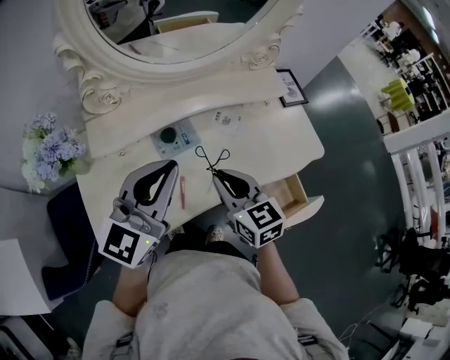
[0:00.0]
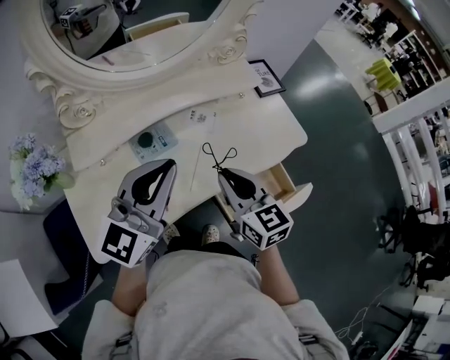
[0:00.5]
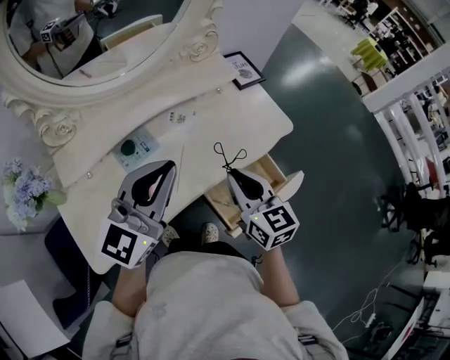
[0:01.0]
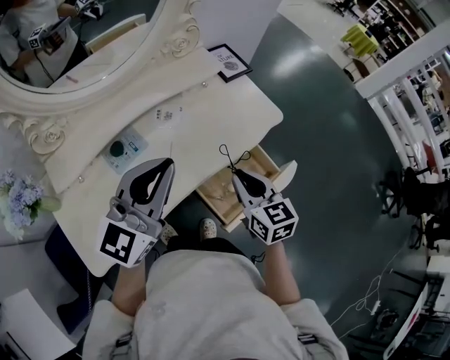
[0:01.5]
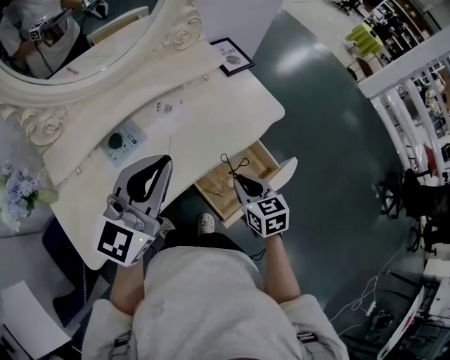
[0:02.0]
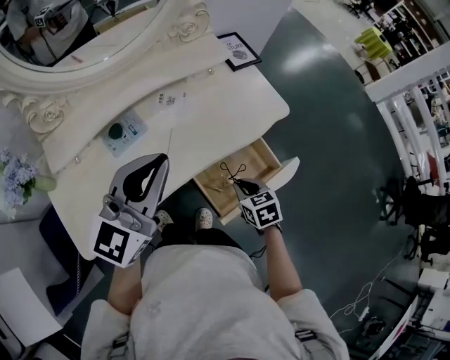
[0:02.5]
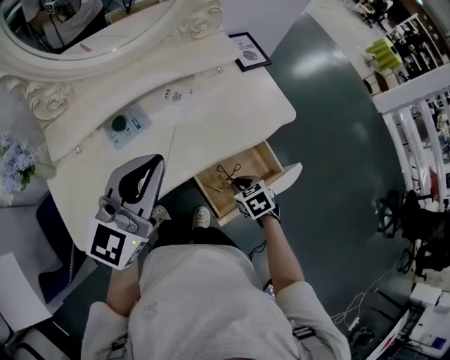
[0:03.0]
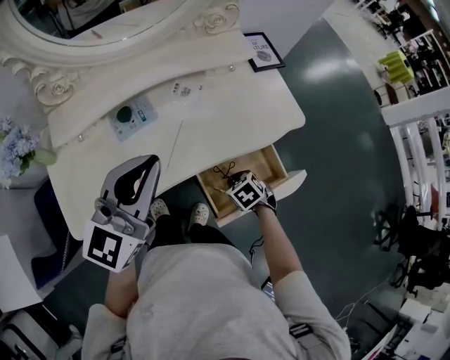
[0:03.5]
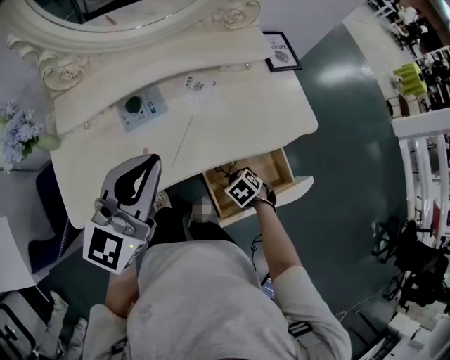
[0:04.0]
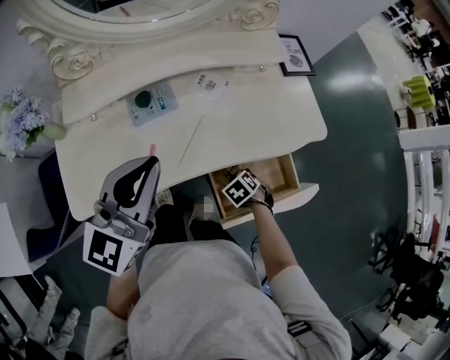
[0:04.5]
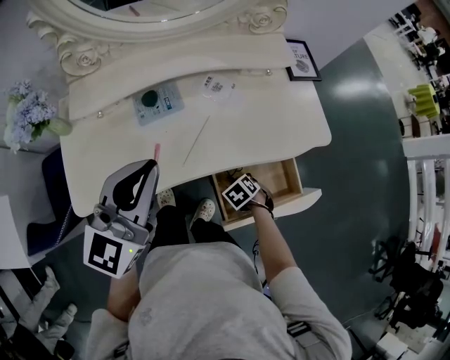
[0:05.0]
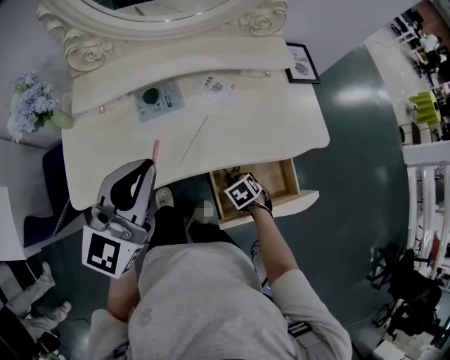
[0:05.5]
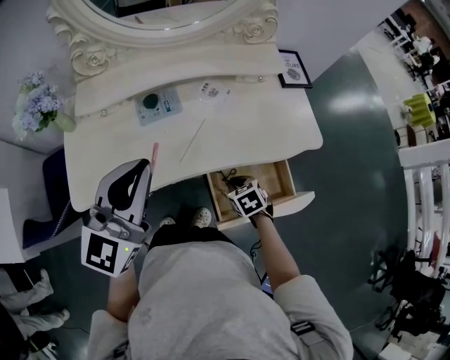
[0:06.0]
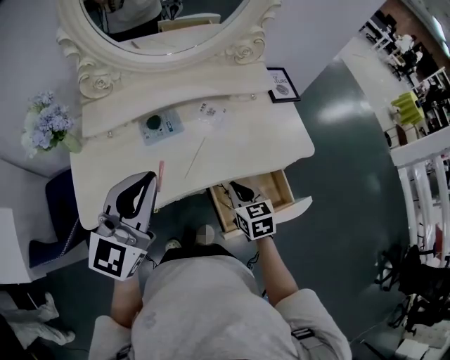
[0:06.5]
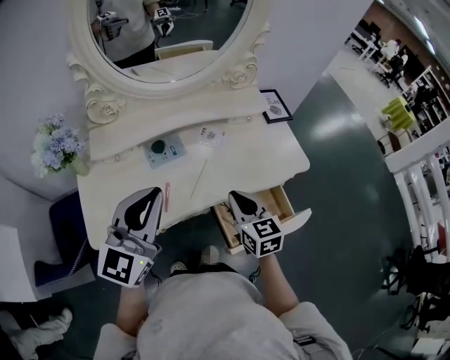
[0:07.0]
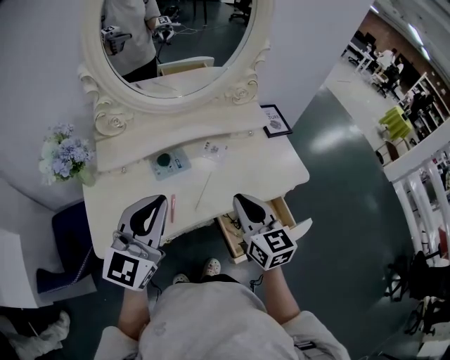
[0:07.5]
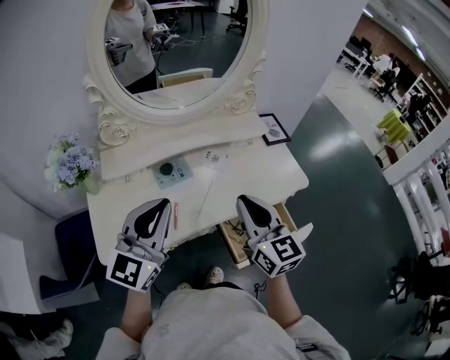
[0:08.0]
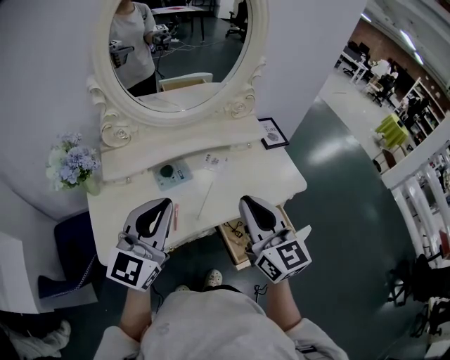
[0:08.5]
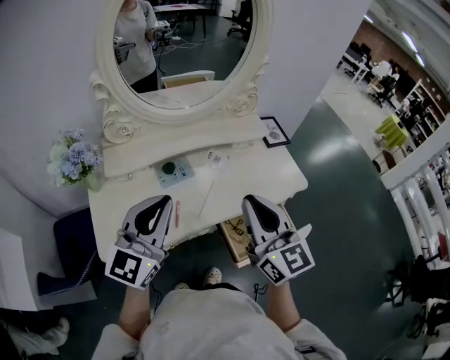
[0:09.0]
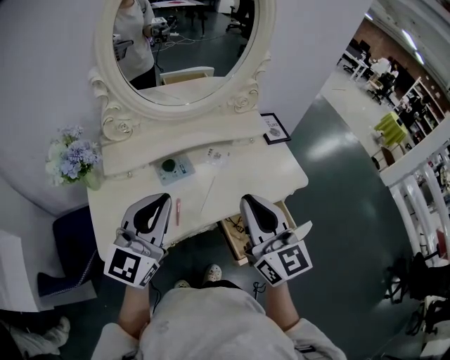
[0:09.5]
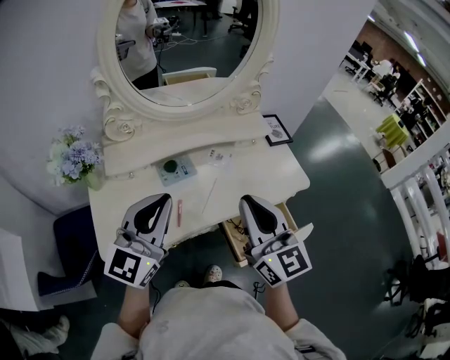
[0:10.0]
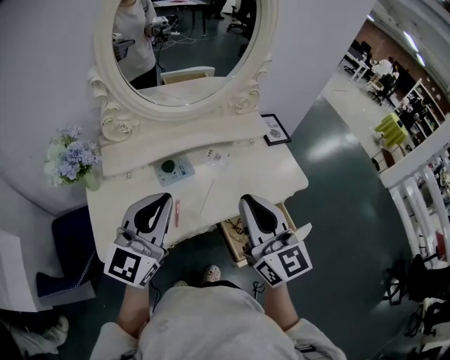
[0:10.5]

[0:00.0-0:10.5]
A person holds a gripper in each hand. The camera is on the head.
0:00.0 to 0:02.0: The left gripper travels to the right by approximately 15 cm. Meanwhile the right gripper shifts roughly 25 cm to the right and downward, and swivels roughly 30 degrees.
0:02.0 to 0:04.0: The left gripper changes place by roughly 5 cm. The right gripper shifts some 20 cm downward, and tips its fingers downward by approximately 40 degrees.
0:04.0 to 0:06.5: The left gripper shifts by approximately 10 cm. The right gripper is displaced upward by about 15 cm, and tips its fingers upward by approximately 40 degrees.
0:06.5 to 0:08.5: The right gripper goes about 25 cm upward, and tips its fingers upward by roughly 40 degrees.
0:08.5 to 0:10.5: The grippers make only small movements.

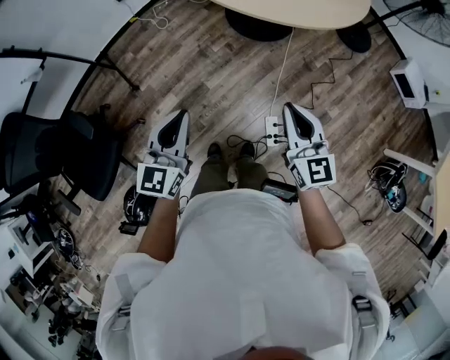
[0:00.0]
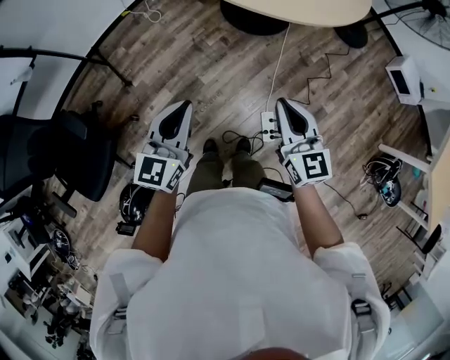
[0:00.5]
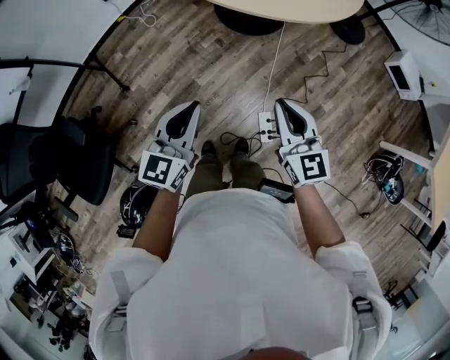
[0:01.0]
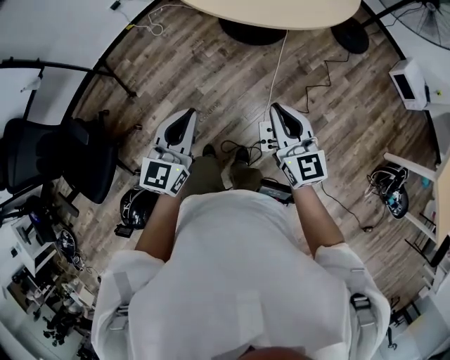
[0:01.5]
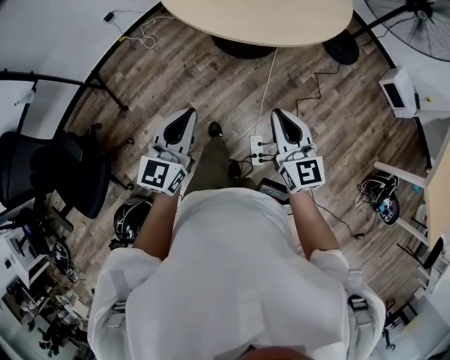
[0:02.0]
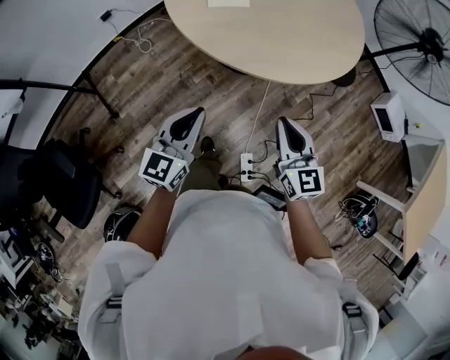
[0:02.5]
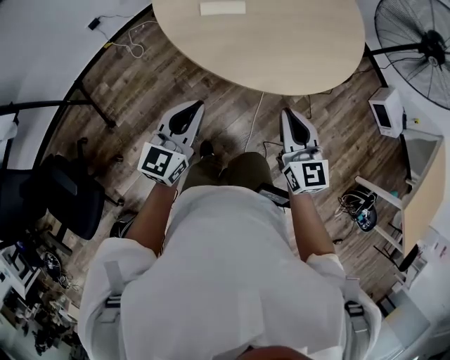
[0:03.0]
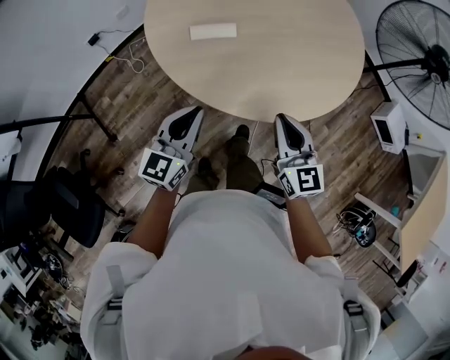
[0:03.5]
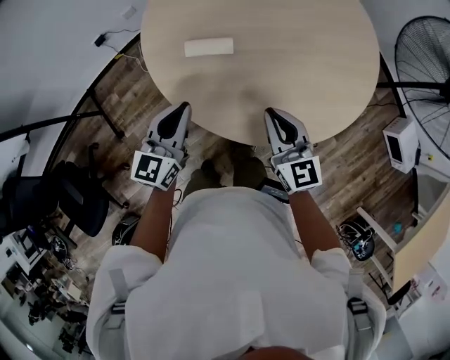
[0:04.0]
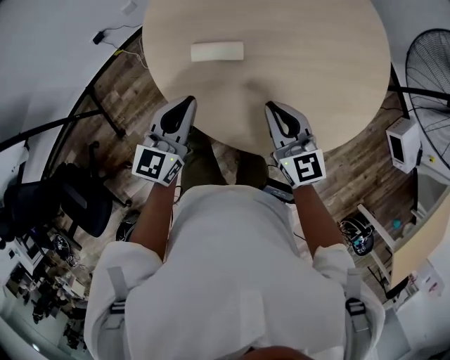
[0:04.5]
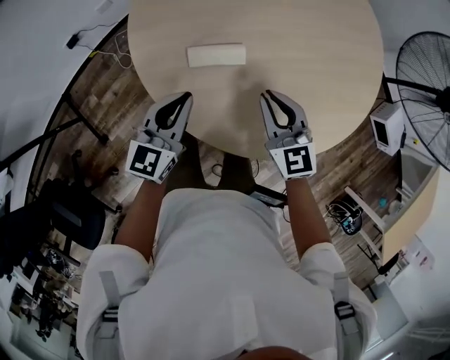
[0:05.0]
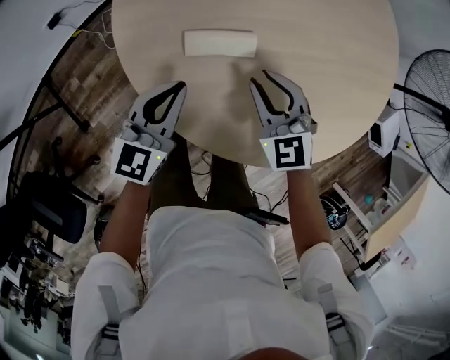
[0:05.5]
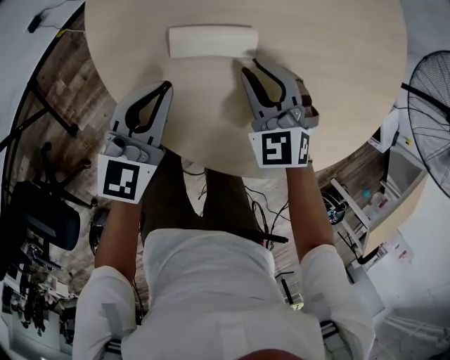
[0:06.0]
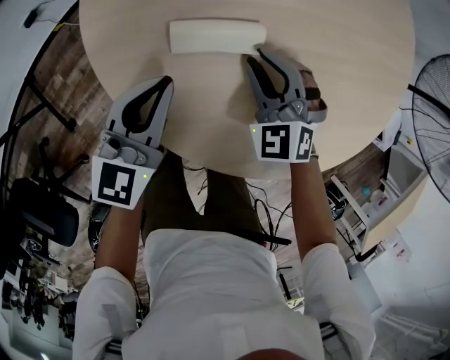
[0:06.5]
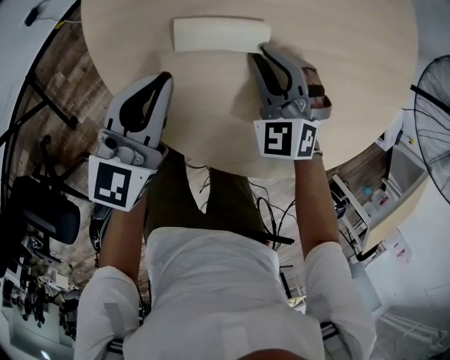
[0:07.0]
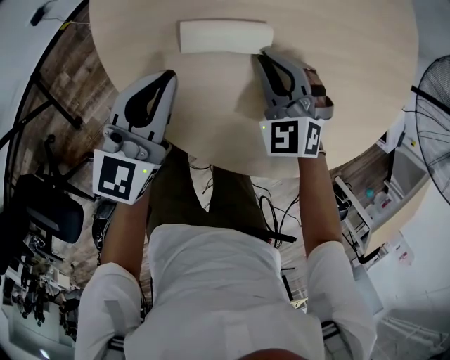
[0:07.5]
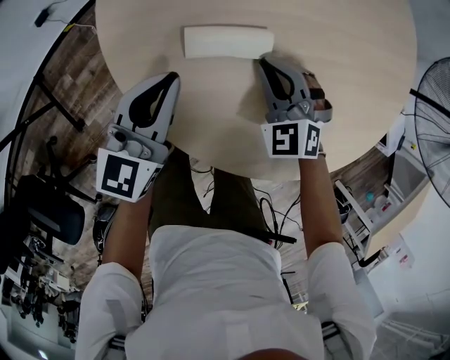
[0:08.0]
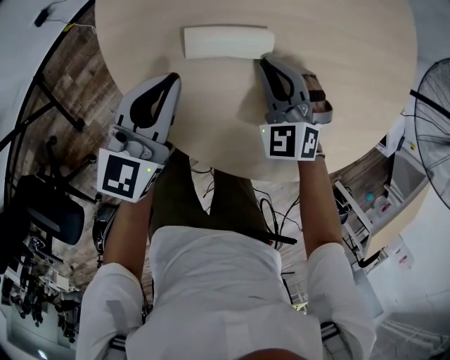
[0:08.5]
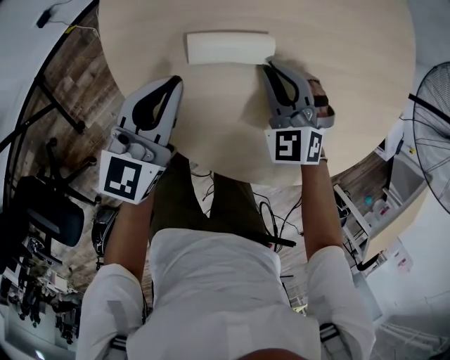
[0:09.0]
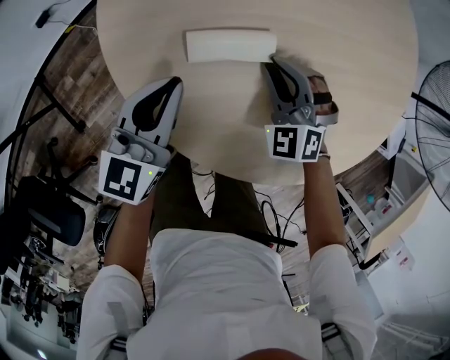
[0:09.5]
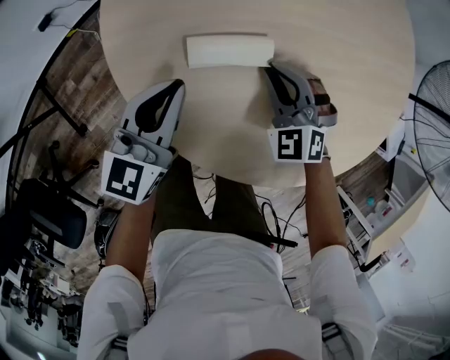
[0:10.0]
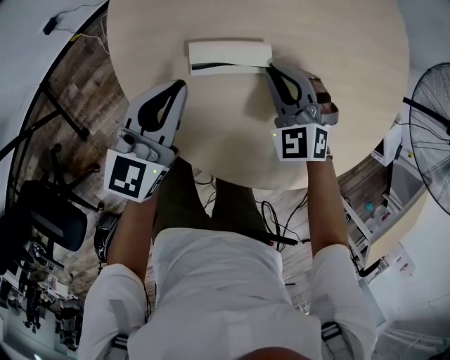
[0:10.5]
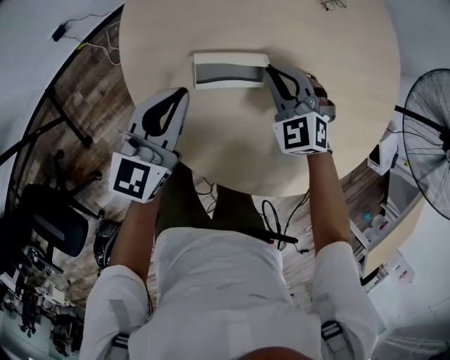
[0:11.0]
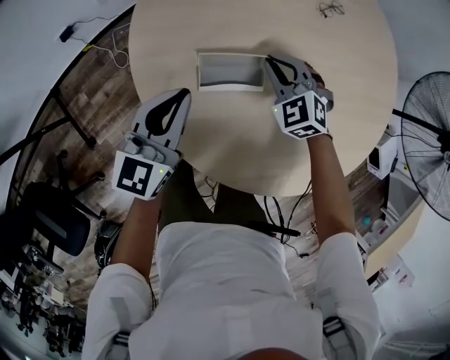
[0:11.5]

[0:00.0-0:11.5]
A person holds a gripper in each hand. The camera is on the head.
0:00.0 to 0:02.0: The grippers both shift to the right and forward by approximately 10 cm.
0:02.0 to 0:04.0: Both grippers are carried forward, approximately 40 cm.
0:04.0 to 0:06.0: The right gripper shifts approximately 30 cm downward, forward and to the left, and turns by about 40 degrees, while the left gripper is displaced downward and forward by about 20 cm.
0:06.0 to 0:09.5: The grippers stay close to where they were, moving slightly.
0:09.5 to 0:11.5: The right gripper goes about 10 cm forward. Meanwhile the left gripper goes roughly 5 cm upward.

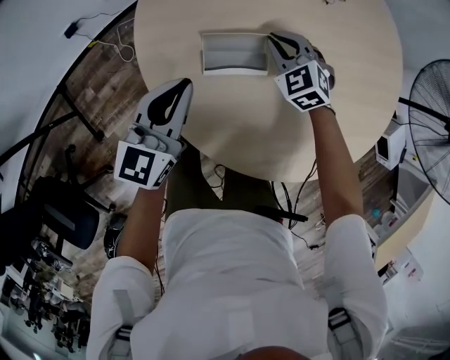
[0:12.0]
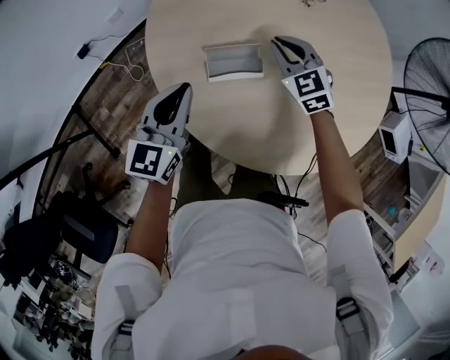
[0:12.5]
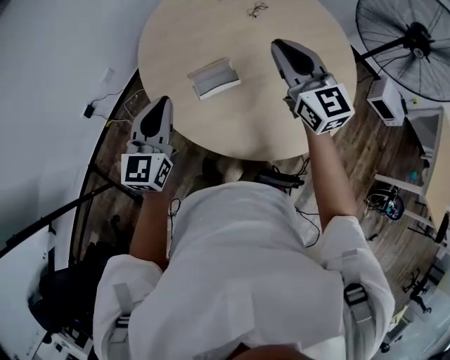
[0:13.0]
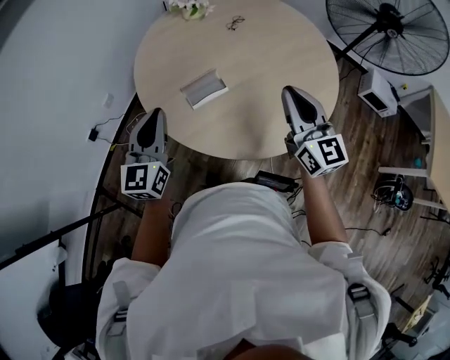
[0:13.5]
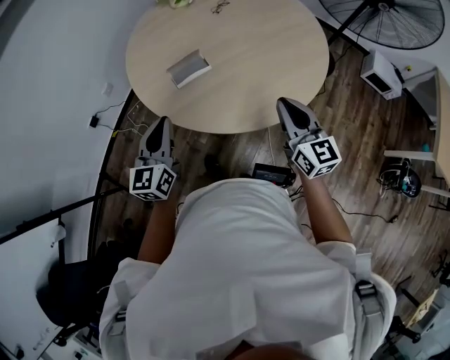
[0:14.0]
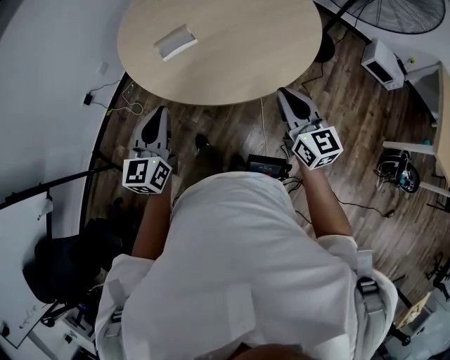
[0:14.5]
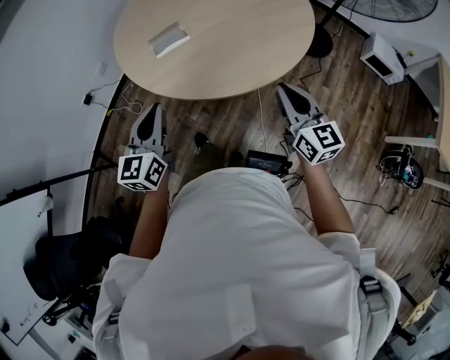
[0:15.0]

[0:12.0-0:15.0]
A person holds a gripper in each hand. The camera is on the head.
0:12.0 to 0:13.5: The right gripper heads upward and backward, covering about 40 cm, and tips its fingers upward by approximately 50 degrees, while the left gripper is displaced upward and backward by roughly 20 cm.
0:13.5 to 0:15.0: The two grippers go roughly 25 cm backward and to the right.

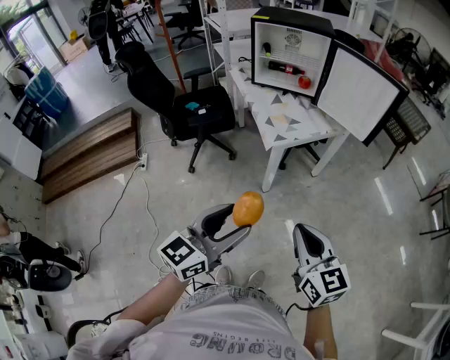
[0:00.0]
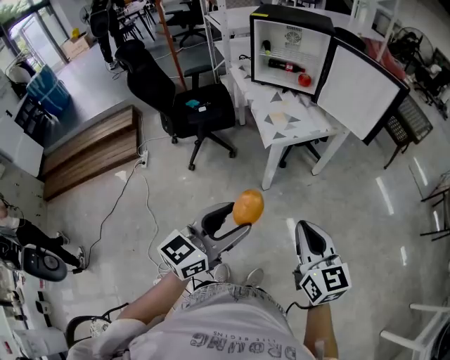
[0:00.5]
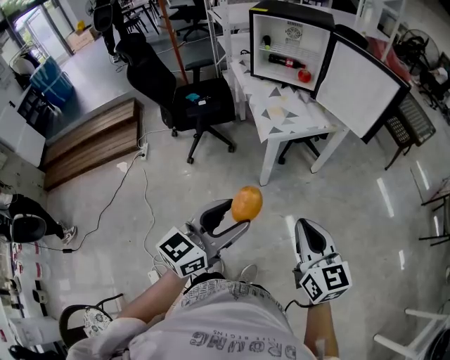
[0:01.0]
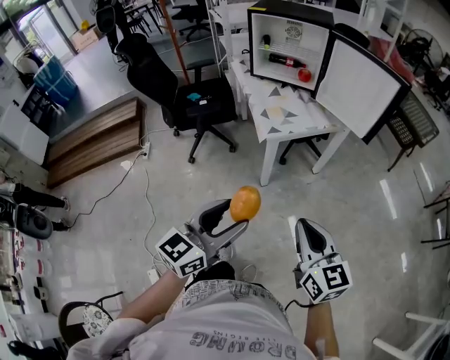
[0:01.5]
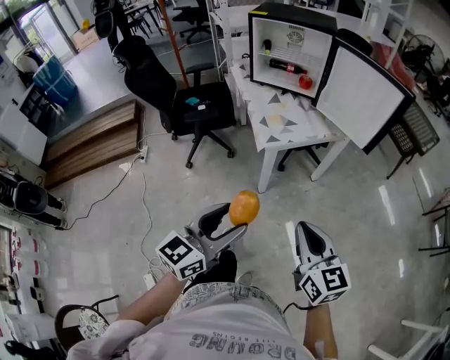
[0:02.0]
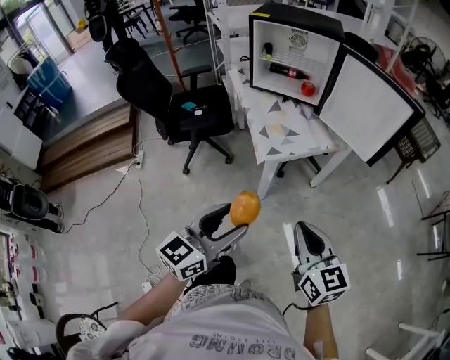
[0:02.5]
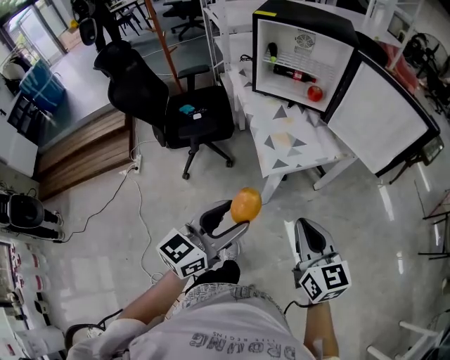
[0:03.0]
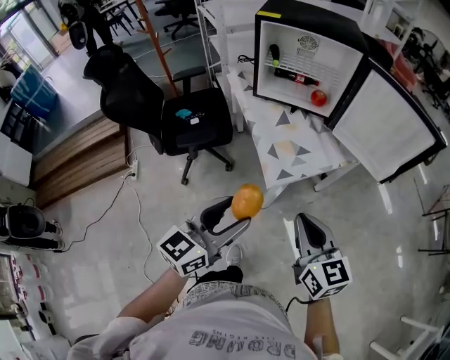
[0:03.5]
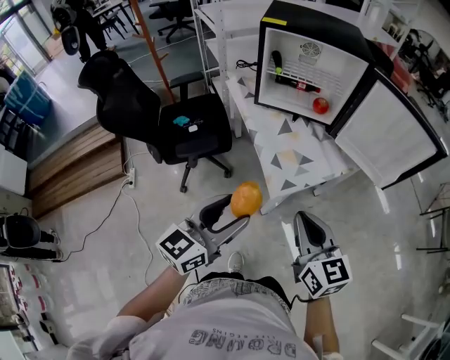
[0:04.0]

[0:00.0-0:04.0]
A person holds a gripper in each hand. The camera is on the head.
0:00.0 to 0:02.0: The right gripper heads to the right and forward, covering some 10 cm; the left gripper travels to the right by some 5 cm.
0:02.0 to 0:04.0: The grippers both shift forward and to the left by about 30 cm.
